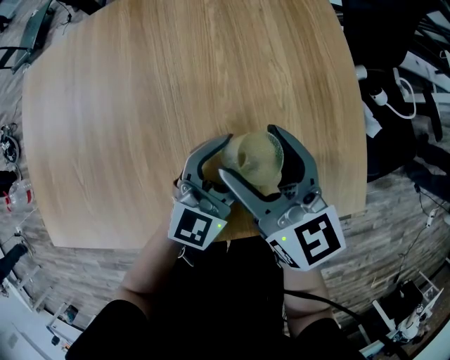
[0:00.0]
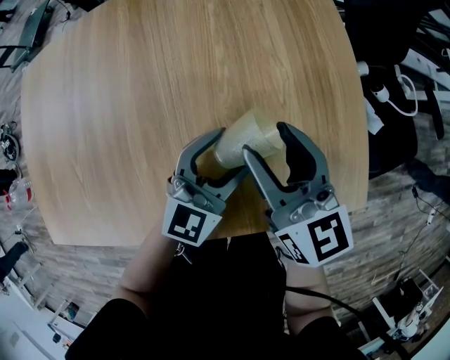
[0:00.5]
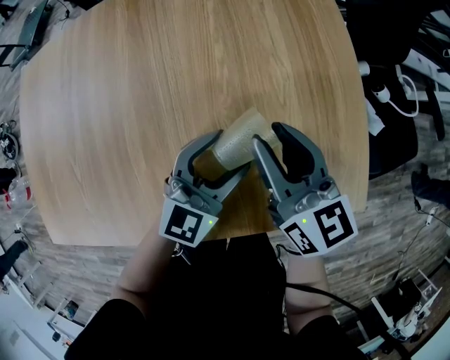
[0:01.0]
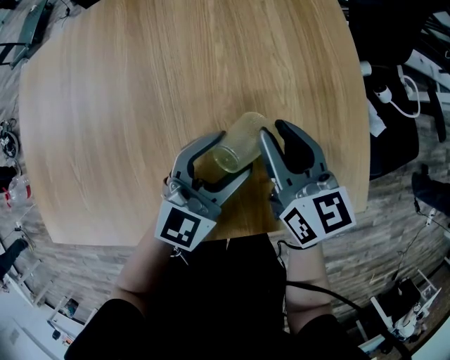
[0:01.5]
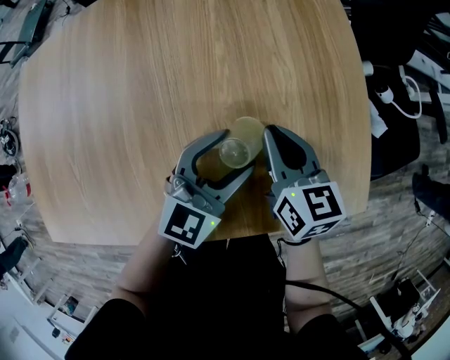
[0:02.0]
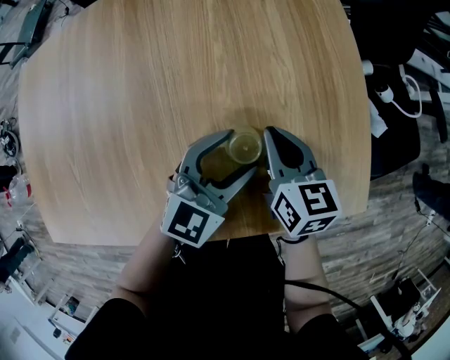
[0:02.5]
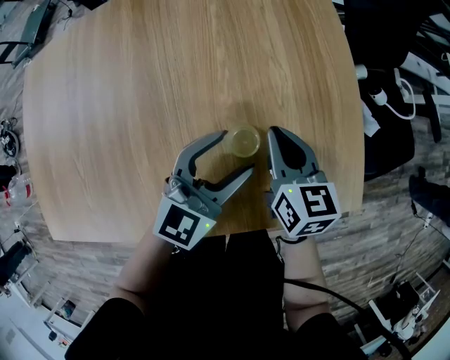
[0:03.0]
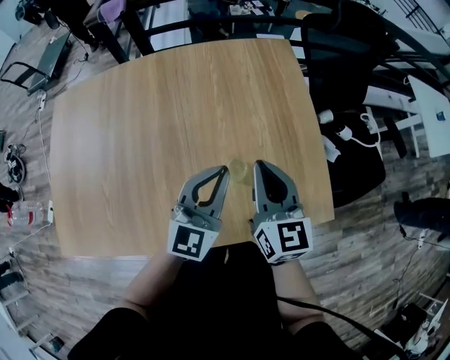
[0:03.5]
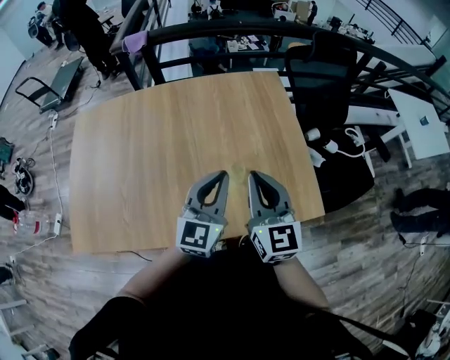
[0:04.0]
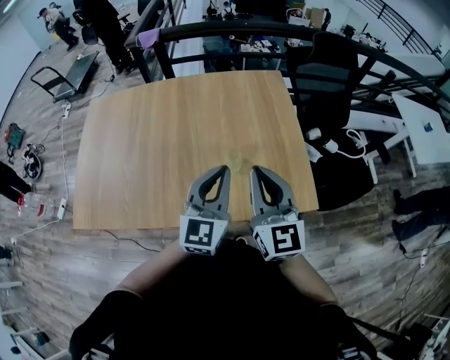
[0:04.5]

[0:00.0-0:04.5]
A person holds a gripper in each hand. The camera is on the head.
0:00.0 to 0:02.0: The right gripper goes about 10 cm downward and to the right, and closes up.
0:02.0 to 0:04.5: Both grippers move upward and backward, approximately 35 cm. The right gripper swivels approximately 40 degrees. Meanwhile the left gripper changes its angle by some 30 degrees, and closes.

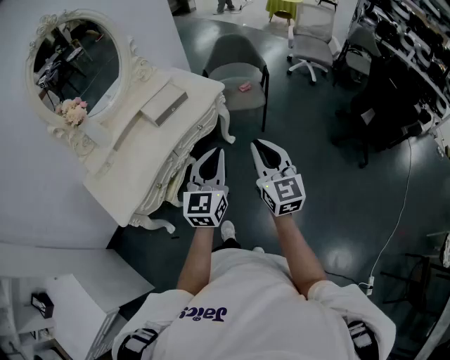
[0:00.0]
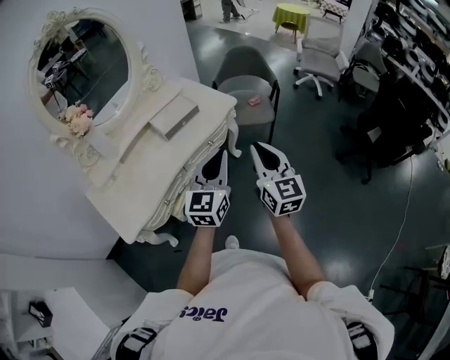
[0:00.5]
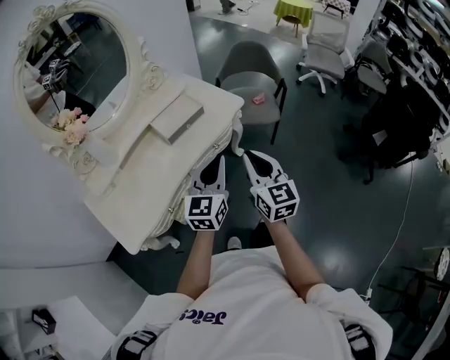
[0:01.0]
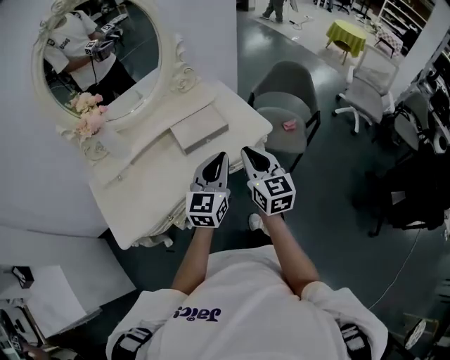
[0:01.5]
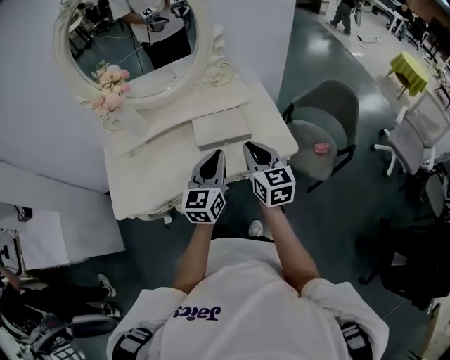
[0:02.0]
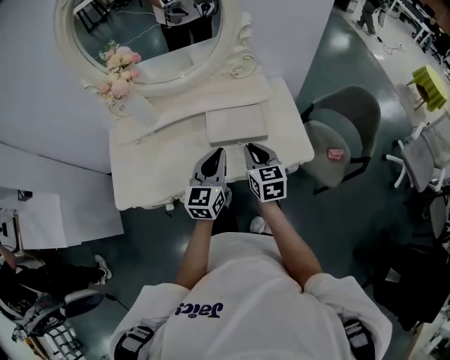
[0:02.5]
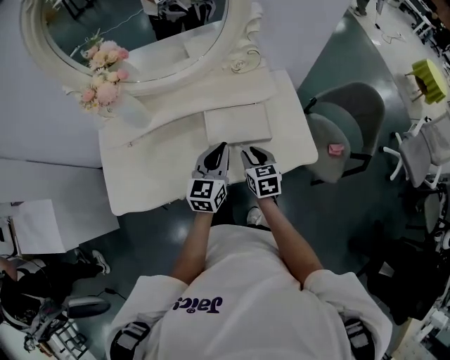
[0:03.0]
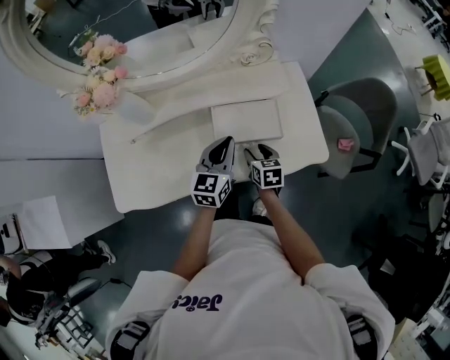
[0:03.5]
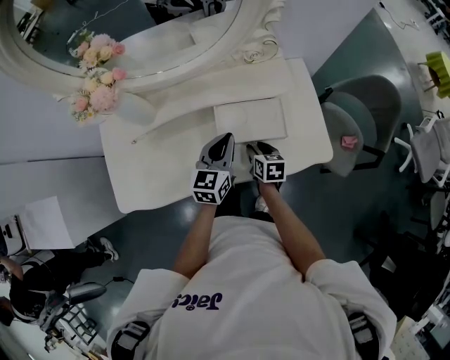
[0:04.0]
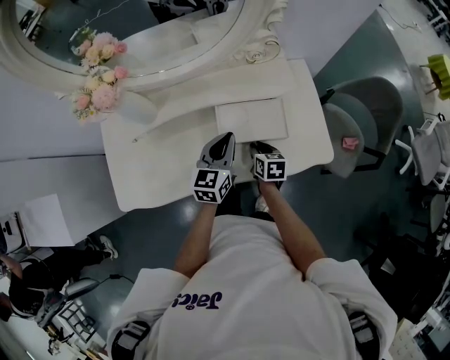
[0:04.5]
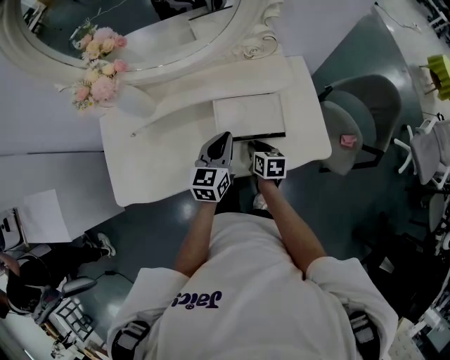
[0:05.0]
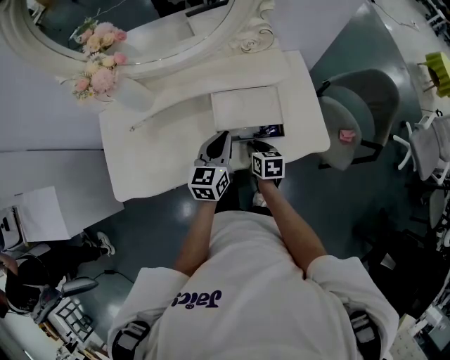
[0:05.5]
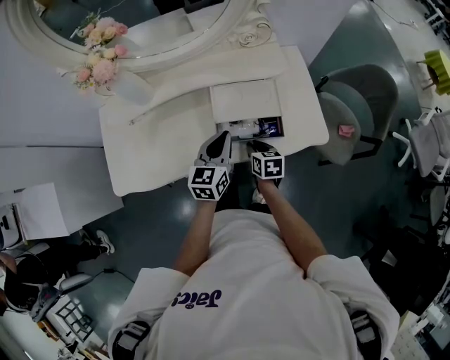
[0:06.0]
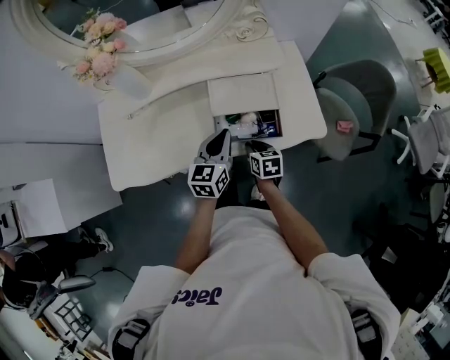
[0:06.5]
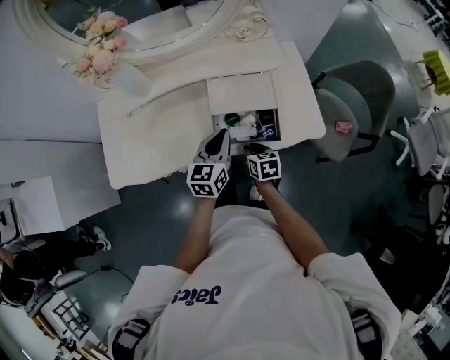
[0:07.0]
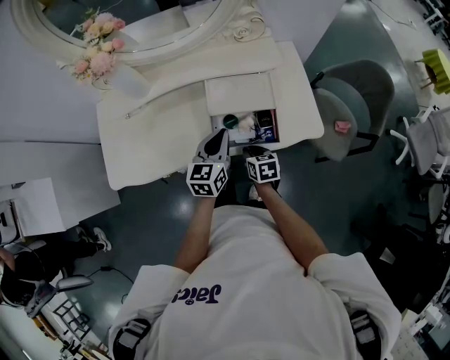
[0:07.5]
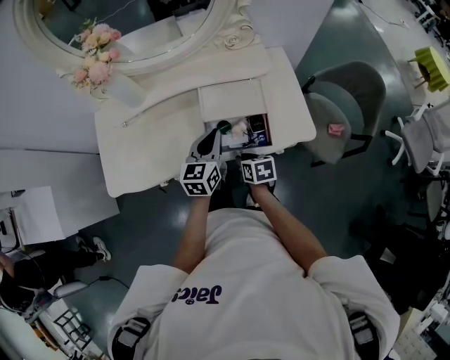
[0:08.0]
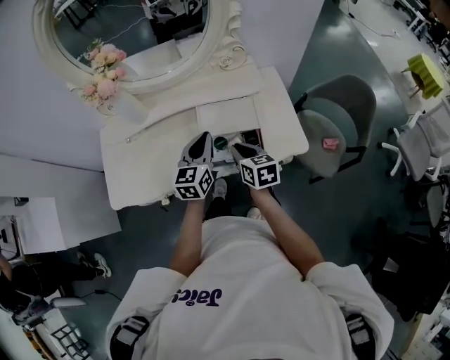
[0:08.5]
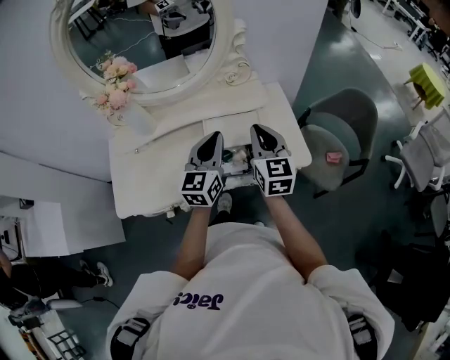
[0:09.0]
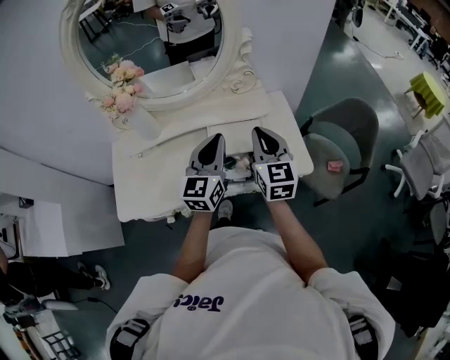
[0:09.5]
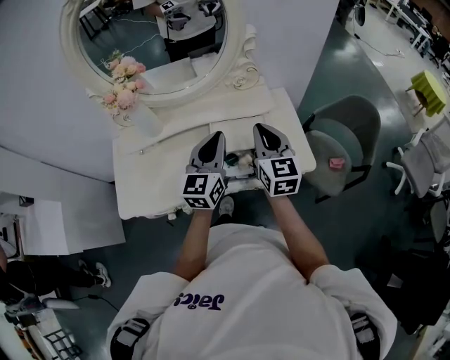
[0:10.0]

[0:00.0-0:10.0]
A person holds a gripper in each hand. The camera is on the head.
0:00.0 to 0:02.0: The right gripper moves roughly 40 cm, and rotates some 40 degrees. The left gripper shifts by some 40 cm, and rotates some 40 degrees.
0:02.0 to 0:04.0: The right gripper heads downward and forward, covering some 30 cm, tips its fingers downward by roughly 30 degrees, and opens its fingers. The left gripper moves forward and downward, roughly 20 cm.
0:04.0 to 0:06.0: The two grippers go some 5 cm backward. The right gripper closes up.
0:06.0 to 0:08.0: The right gripper shifts some 5 cm backward.
0:08.0 to 0:10.0: The right gripper moves upward, roughly 30 cm, and points its fingers approximately 40 degrees further upward. Meanwhile the left gripper goes about 15 cm upward.

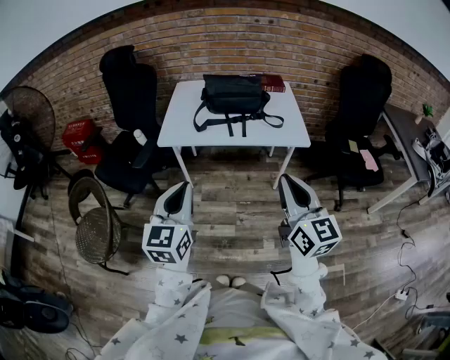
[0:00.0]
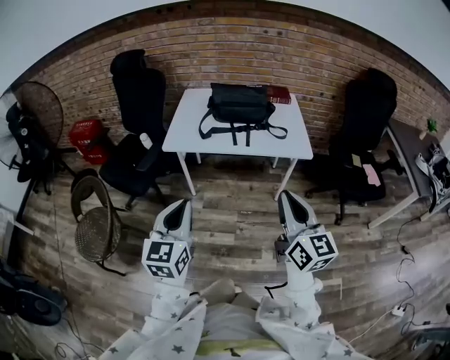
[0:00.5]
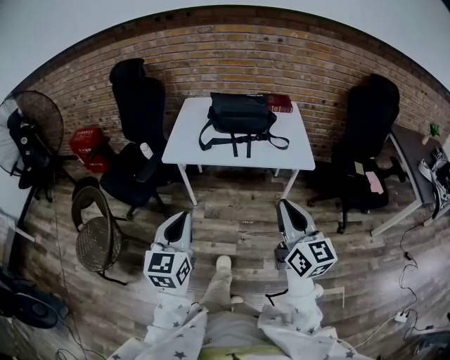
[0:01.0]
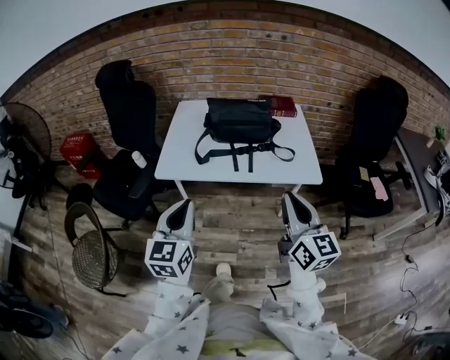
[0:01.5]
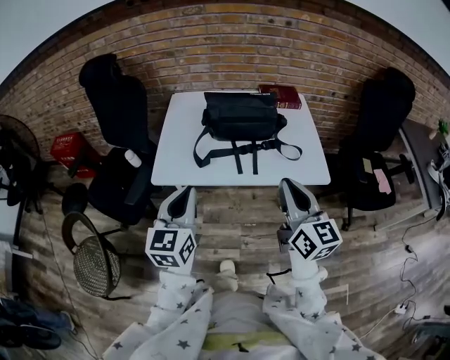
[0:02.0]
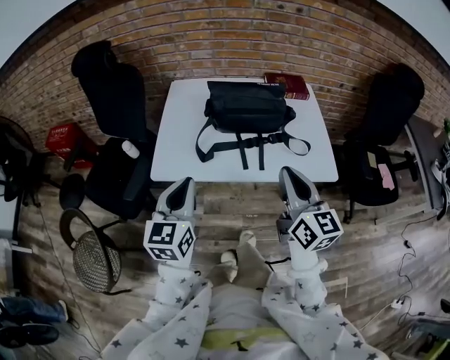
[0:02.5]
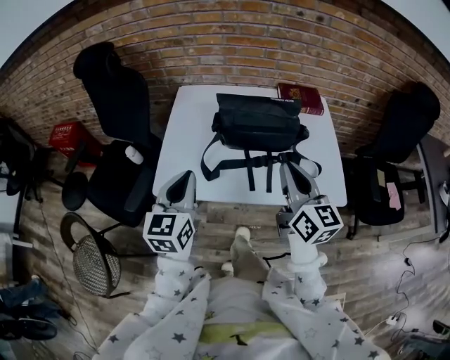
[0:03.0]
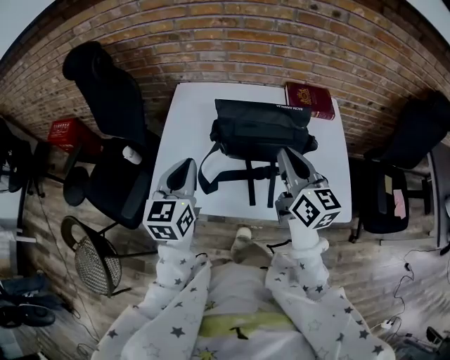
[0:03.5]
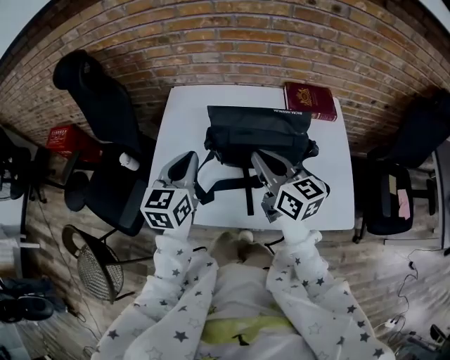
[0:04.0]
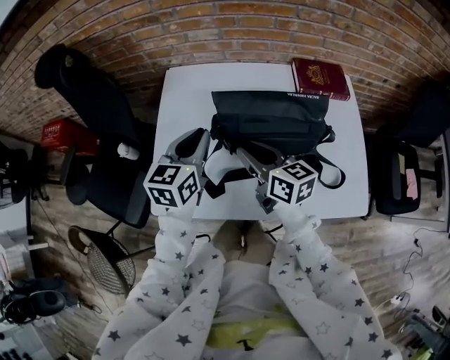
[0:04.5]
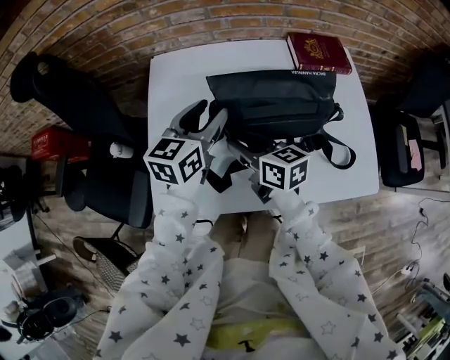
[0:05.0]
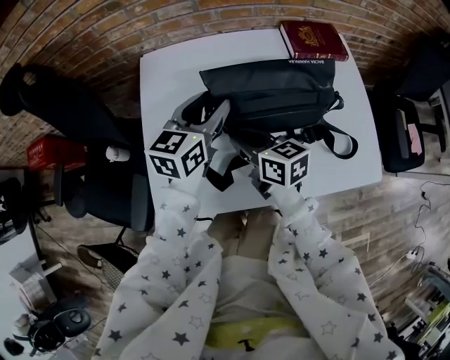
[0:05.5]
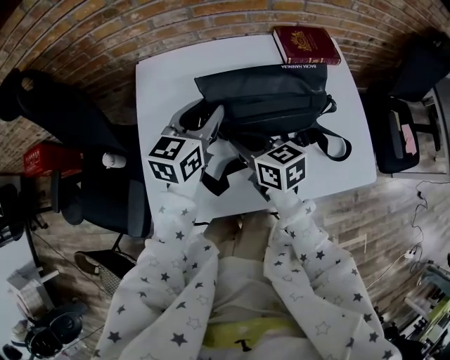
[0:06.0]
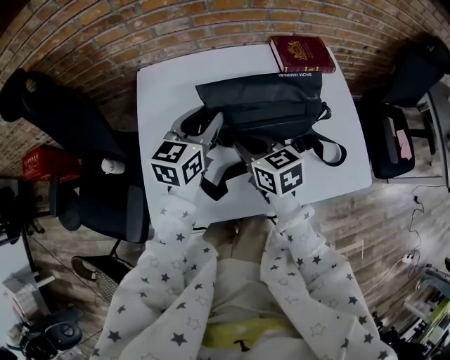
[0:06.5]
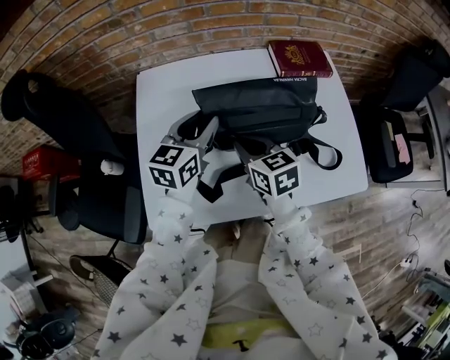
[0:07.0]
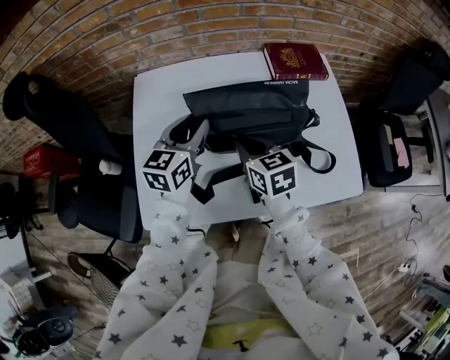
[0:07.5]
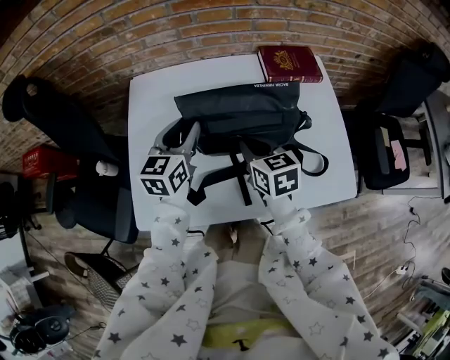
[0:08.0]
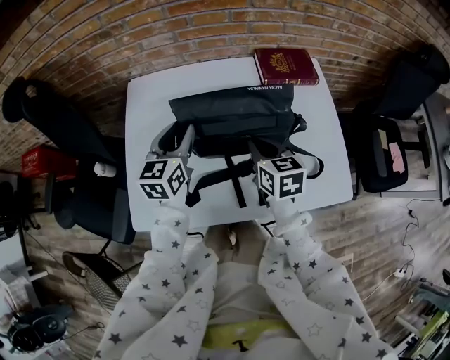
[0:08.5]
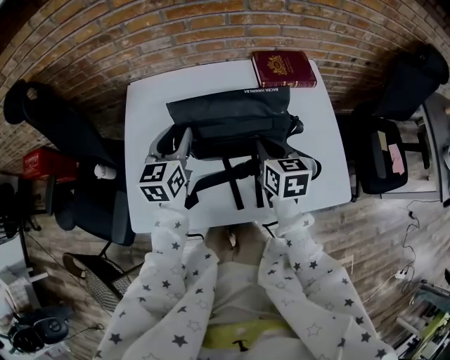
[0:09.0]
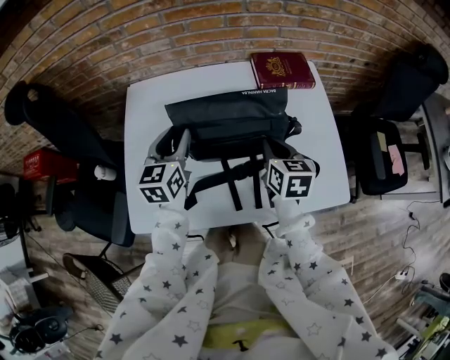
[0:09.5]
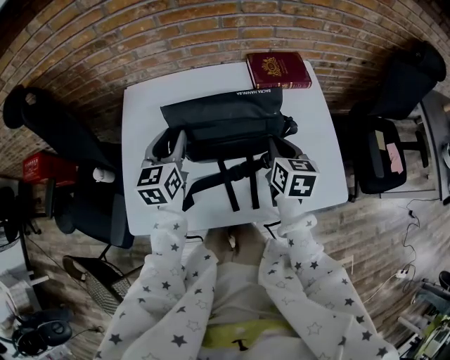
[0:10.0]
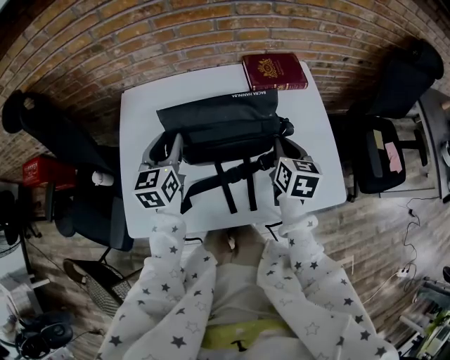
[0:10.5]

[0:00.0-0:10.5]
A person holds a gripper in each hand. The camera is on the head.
0:00.0 to 0:02.0: Both grippers travel together forward, roughly 25 cm.
0:02.0 to 0:04.0: The grippers both shift forward by some 30 cm. The right gripper swivels approximately 20 degrees.
0:04.0 to 0:06.5: The left gripper travels forward, to the right and downward by some 15 cm, rotates approximately 20 degrees, and opens its fingers, while the right gripper moves downward and to the left, about 15 cm, rotates roughly 20 degrees, and opens, then closes again.
0:06.5 to 0:08.5: The left gripper goes some 10 cm to the left.
0:08.5 to 0:10.5: The right gripper shifts some 10 cm to the right.

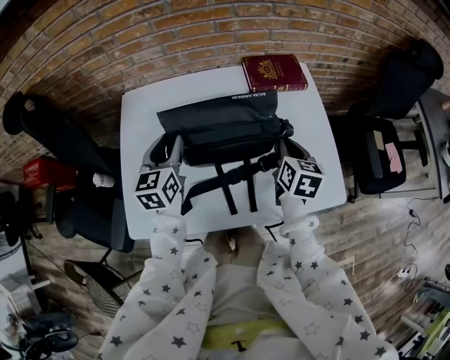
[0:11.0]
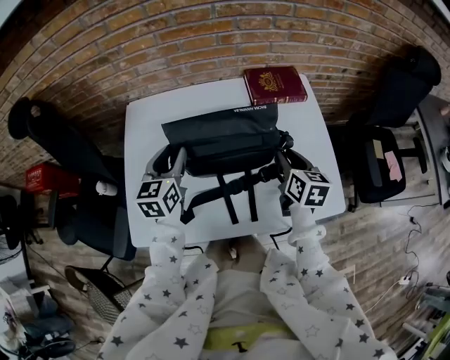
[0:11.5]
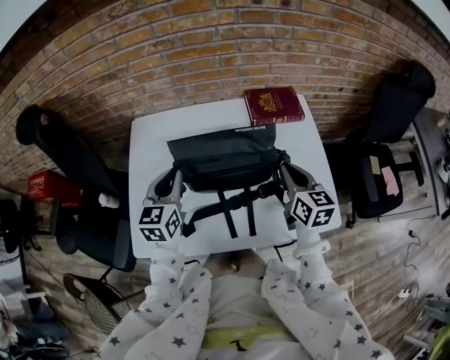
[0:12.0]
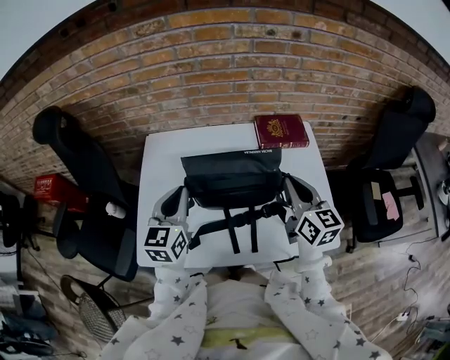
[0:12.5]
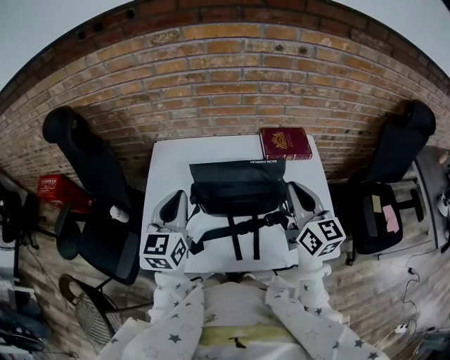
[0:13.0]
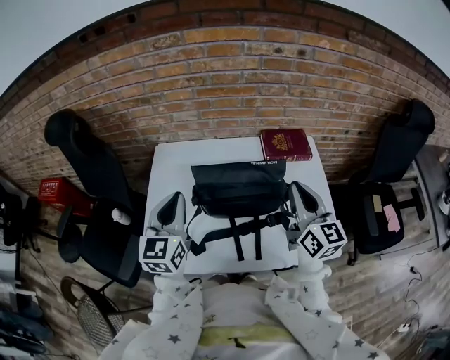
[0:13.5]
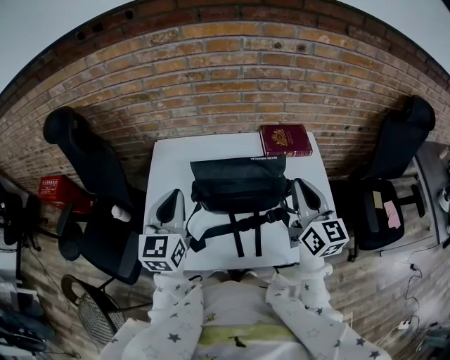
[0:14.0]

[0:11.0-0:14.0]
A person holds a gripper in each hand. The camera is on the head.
0:11.0 to 0:12.5: The right gripper heads upward, covering about 15 cm, rotates roughly 30 degrees, and opens, then closes again, while the left gripper goes about 10 cm upward and backward, and closes.
0:12.5 to 0:14.0: Both grippers move upward, approximately 5 cm.
